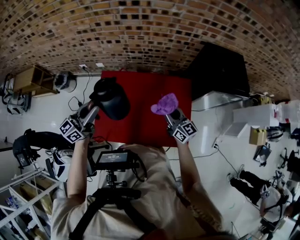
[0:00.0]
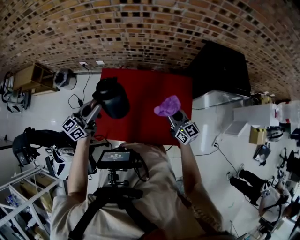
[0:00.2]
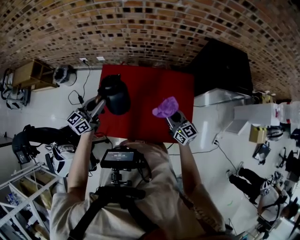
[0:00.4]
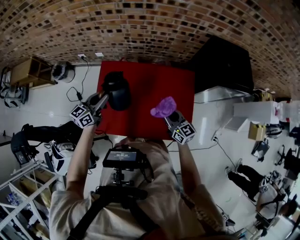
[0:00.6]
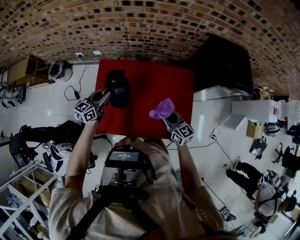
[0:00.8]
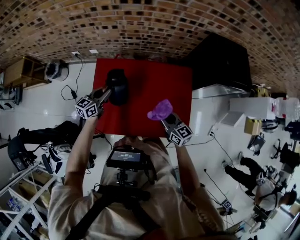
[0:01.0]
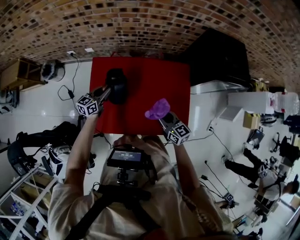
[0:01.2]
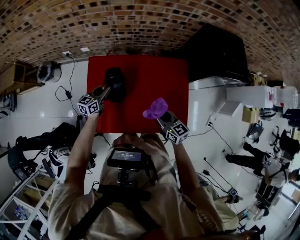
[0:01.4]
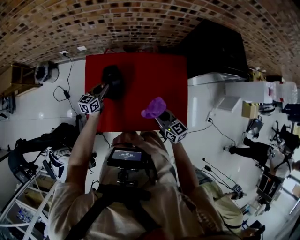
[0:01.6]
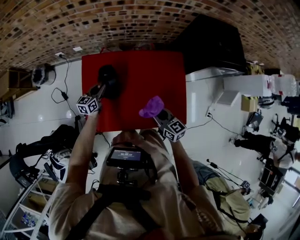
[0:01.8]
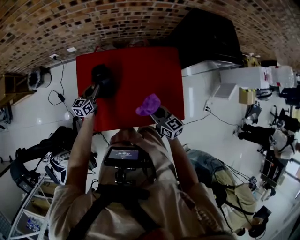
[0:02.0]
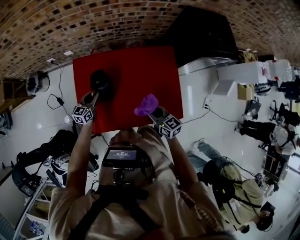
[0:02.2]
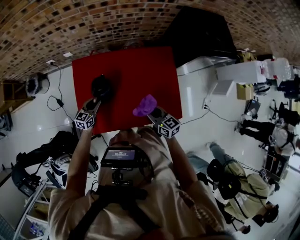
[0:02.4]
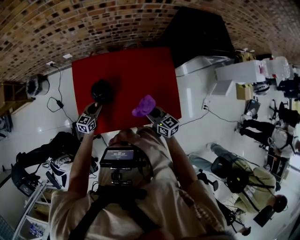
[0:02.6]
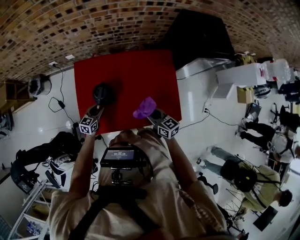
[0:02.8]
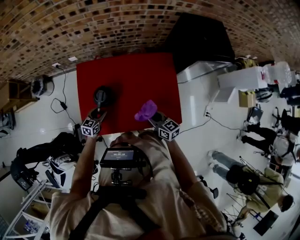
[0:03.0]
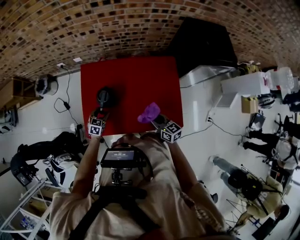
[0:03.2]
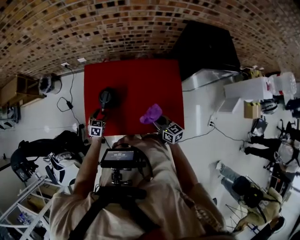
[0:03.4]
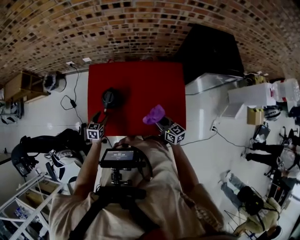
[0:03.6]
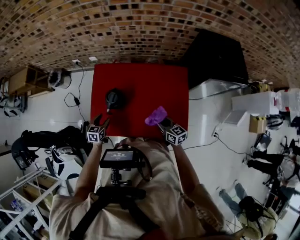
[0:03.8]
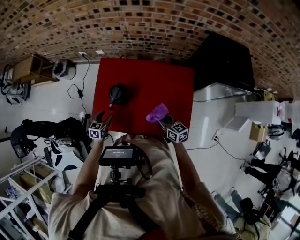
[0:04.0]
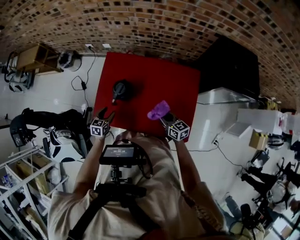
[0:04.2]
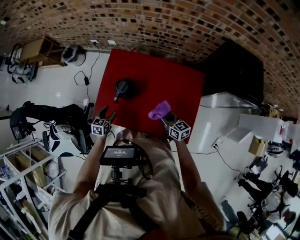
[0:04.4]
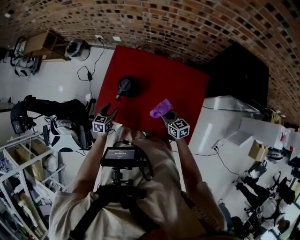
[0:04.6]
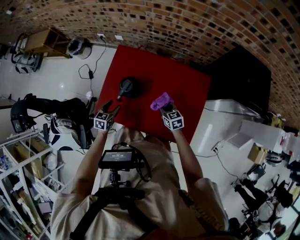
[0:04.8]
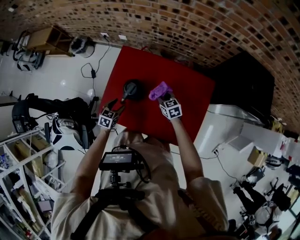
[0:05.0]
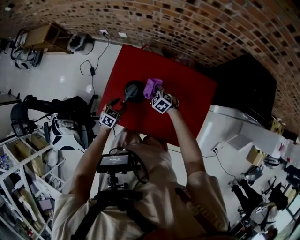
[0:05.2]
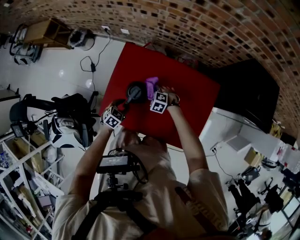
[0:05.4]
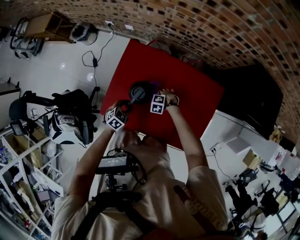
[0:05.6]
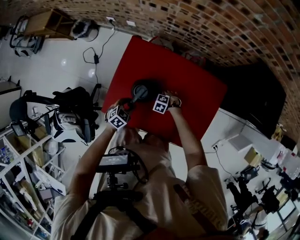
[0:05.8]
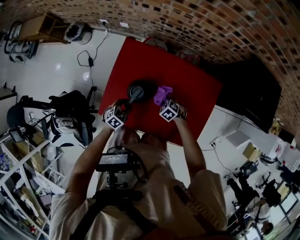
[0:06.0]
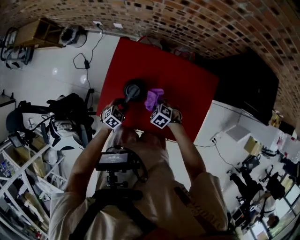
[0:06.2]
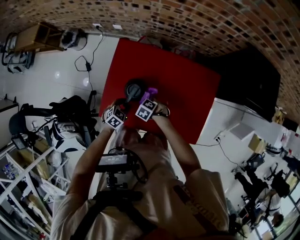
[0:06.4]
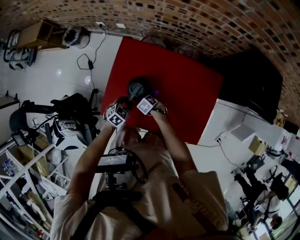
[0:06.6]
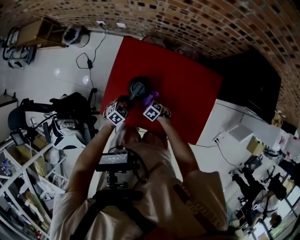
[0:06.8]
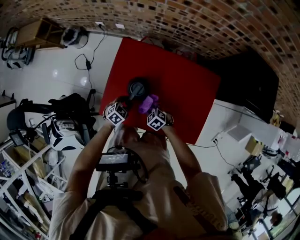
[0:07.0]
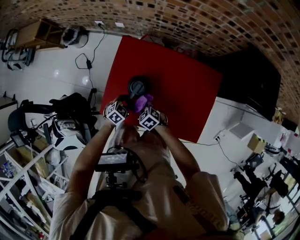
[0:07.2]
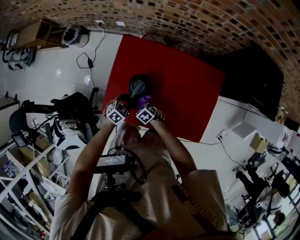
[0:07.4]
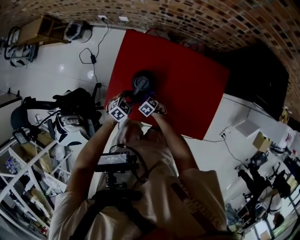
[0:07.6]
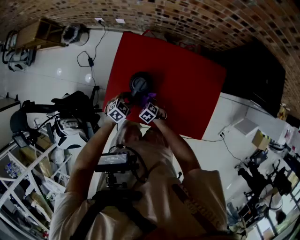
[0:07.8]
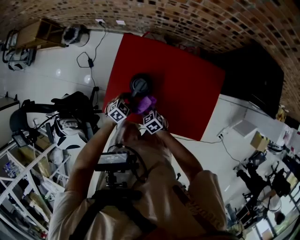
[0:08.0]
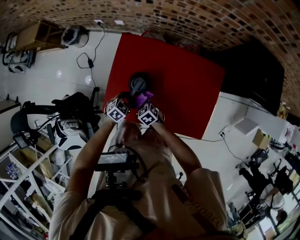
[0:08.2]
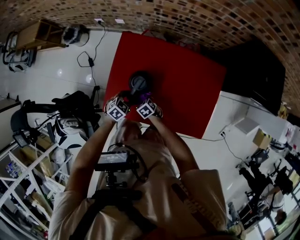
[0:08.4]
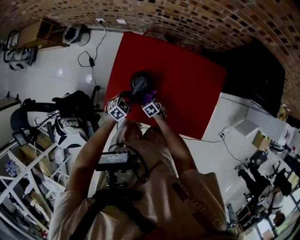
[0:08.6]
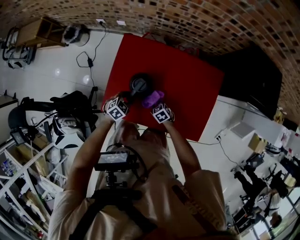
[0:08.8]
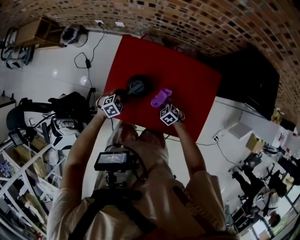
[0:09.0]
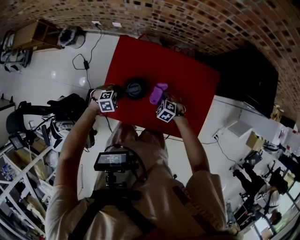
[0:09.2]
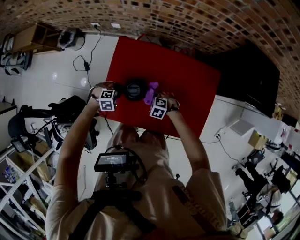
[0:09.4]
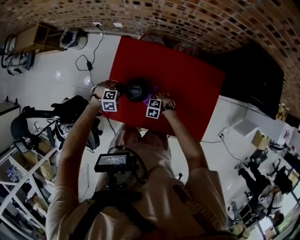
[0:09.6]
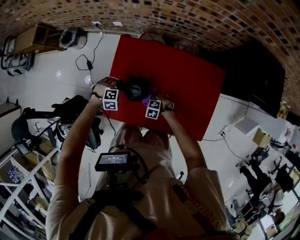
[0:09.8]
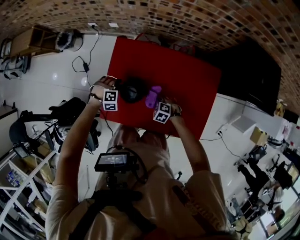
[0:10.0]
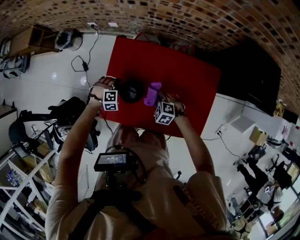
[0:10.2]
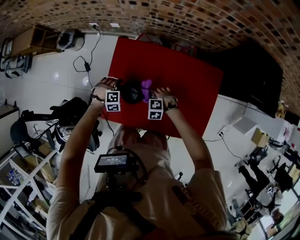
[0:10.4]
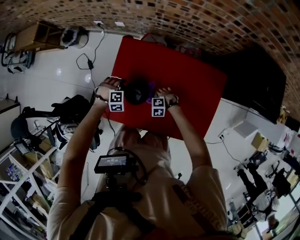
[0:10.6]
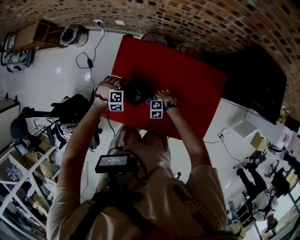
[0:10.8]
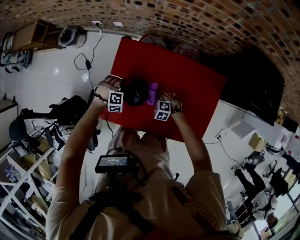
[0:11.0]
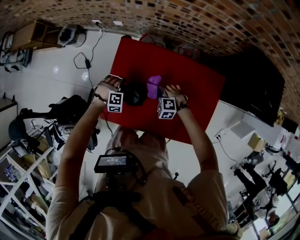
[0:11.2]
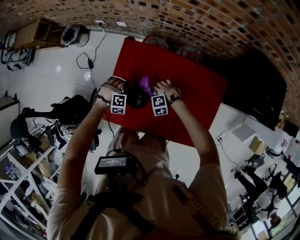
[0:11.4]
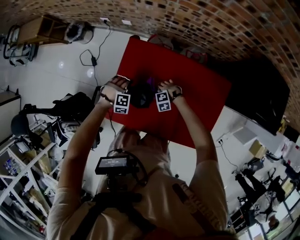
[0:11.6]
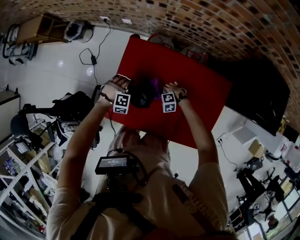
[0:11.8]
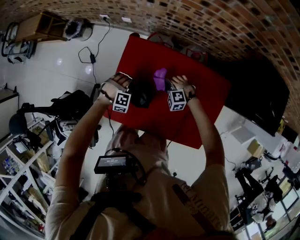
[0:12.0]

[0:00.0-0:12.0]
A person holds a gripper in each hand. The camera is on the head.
0:00.0 to 0:01.6: The left gripper moves downward, approximately 30 cm, and changes its angle by some 30 degrees; the right gripper heads downward and backward, covering roughly 10 cm.
0:01.6 to 0:03.0: The right gripper moves approximately 5 cm. The left gripper moves backward and downward, about 15 cm, and opens.
0:03.0 to 0:04.4: The right gripper shifts by approximately 5 cm. Meanwhile the left gripper is displaced backward and to the left by approximately 5 cm, and turns by approximately 30 degrees.
0:04.4 to 0:06.0: The left gripper ends up approximately 10 cm from where it was, turns by roughly 30 degrees, and closes its fingers; the right gripper heads downward, covering about 15 cm, and angles its fingers downward, by some 50 degrees.
0:06.0 to 0:07.6: The right gripper swings up and down, roughly 15 cm each way, with 3 reversals.
0:07.6 to 0:09.0: The right gripper moves up and down over about 15 cm, changing direction 2 times.
0:09.0 to 0:10.4: The left gripper shifts by roughly 10 cm, and rotates roughly 40 degrees, while the right gripper goes upward and returns, some 5 cm each way, and swivels some 40 degrees.
0:10.4 to 0:12.0: The right gripper moves up and down over about 10 cm, changing direction 3 times.

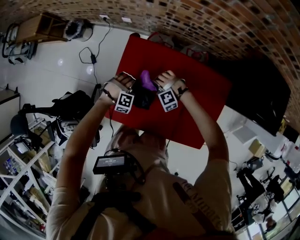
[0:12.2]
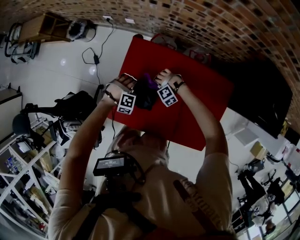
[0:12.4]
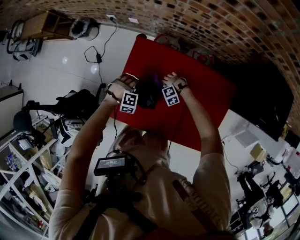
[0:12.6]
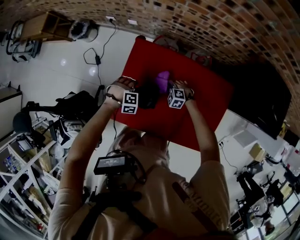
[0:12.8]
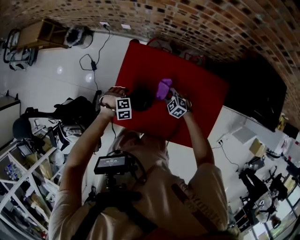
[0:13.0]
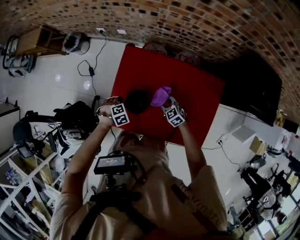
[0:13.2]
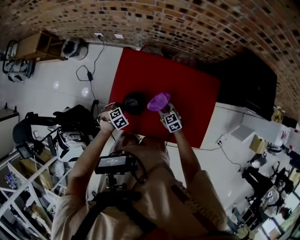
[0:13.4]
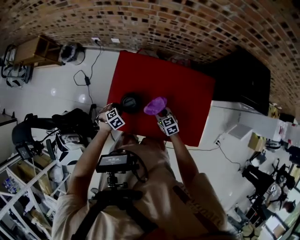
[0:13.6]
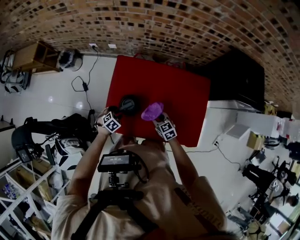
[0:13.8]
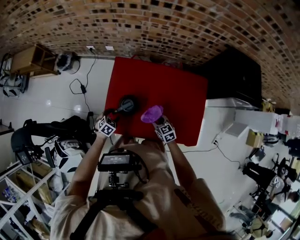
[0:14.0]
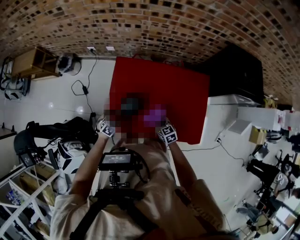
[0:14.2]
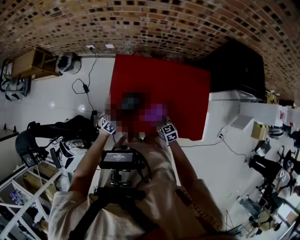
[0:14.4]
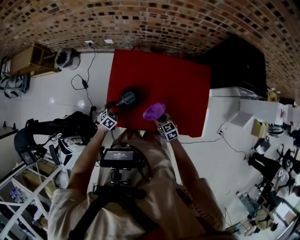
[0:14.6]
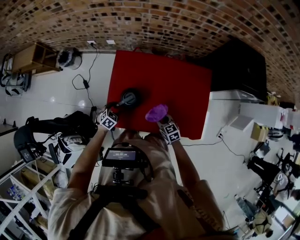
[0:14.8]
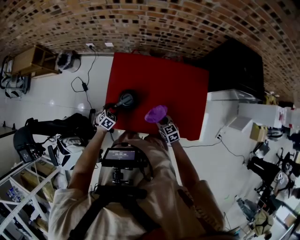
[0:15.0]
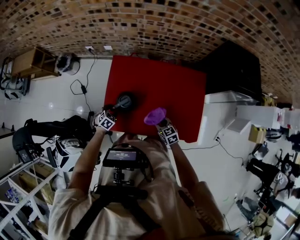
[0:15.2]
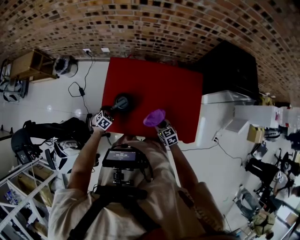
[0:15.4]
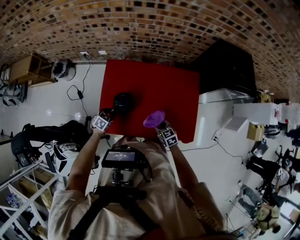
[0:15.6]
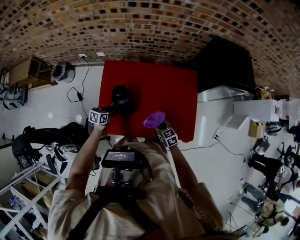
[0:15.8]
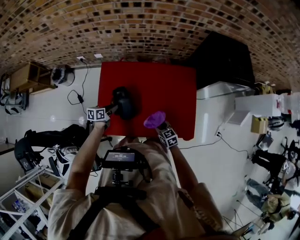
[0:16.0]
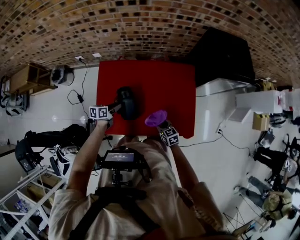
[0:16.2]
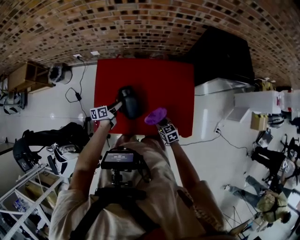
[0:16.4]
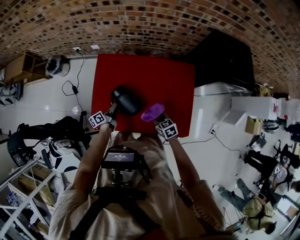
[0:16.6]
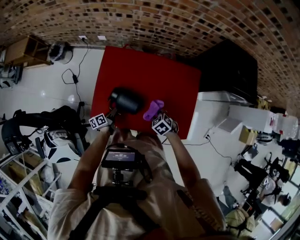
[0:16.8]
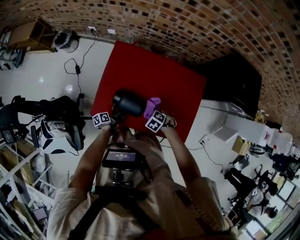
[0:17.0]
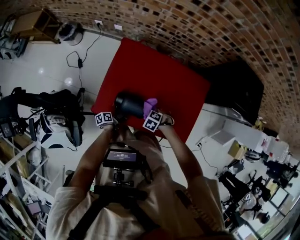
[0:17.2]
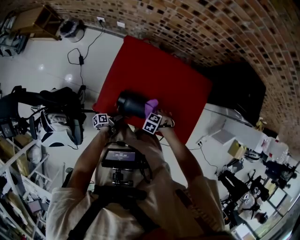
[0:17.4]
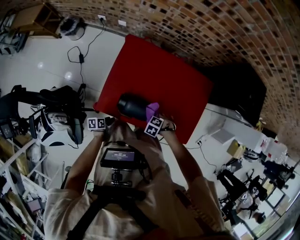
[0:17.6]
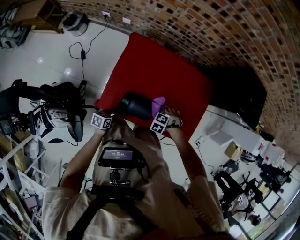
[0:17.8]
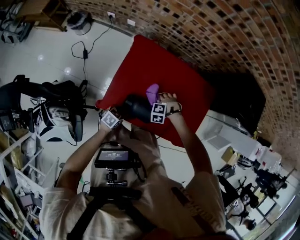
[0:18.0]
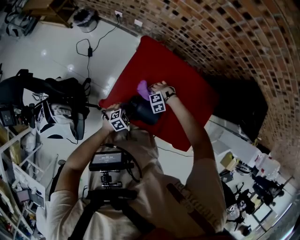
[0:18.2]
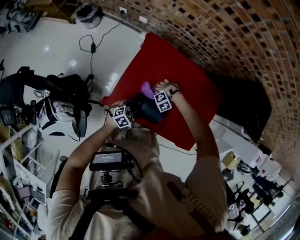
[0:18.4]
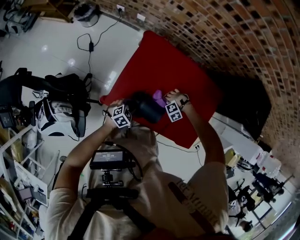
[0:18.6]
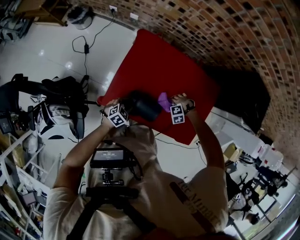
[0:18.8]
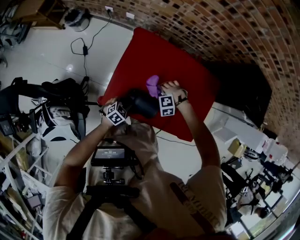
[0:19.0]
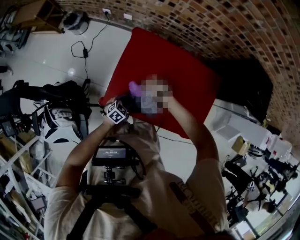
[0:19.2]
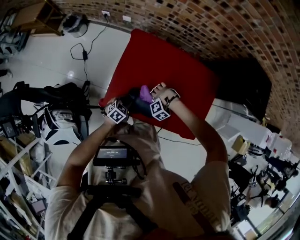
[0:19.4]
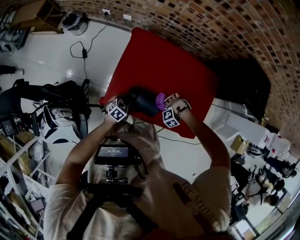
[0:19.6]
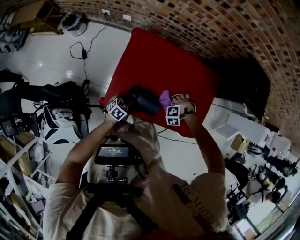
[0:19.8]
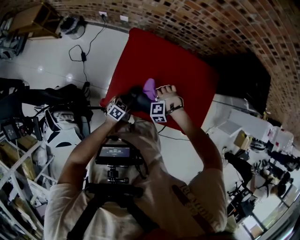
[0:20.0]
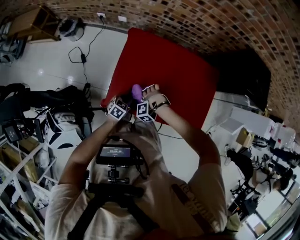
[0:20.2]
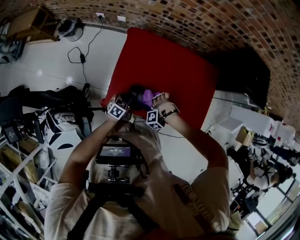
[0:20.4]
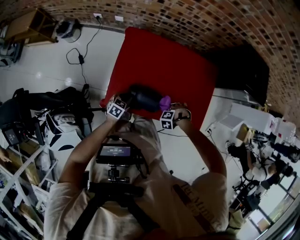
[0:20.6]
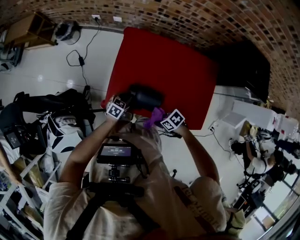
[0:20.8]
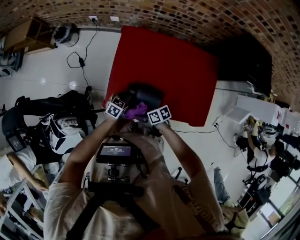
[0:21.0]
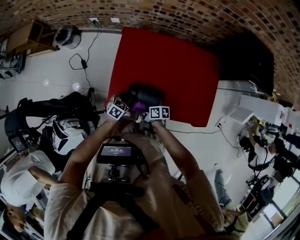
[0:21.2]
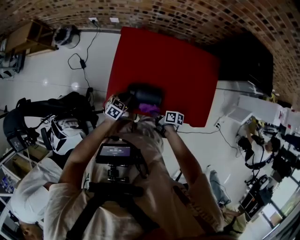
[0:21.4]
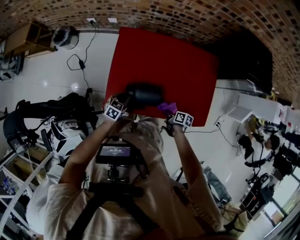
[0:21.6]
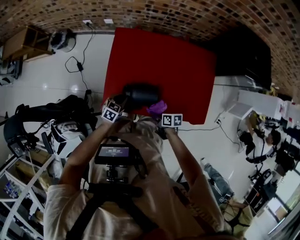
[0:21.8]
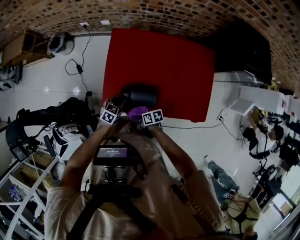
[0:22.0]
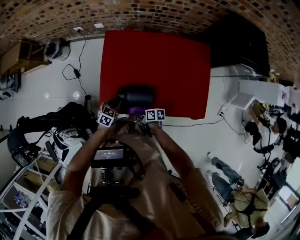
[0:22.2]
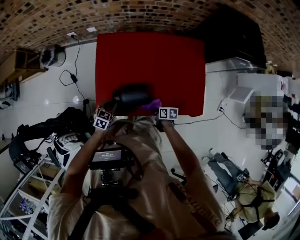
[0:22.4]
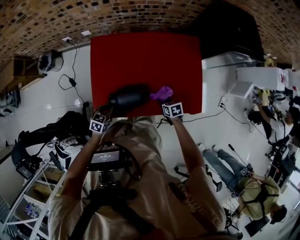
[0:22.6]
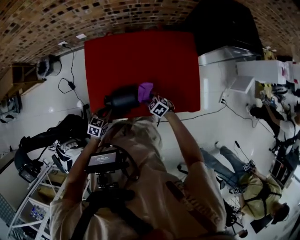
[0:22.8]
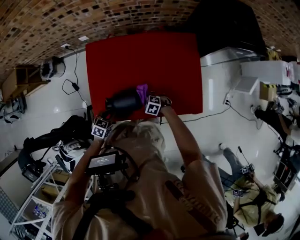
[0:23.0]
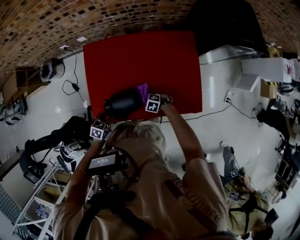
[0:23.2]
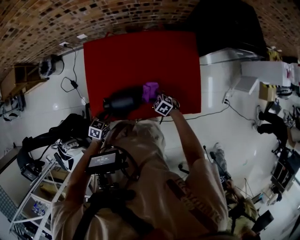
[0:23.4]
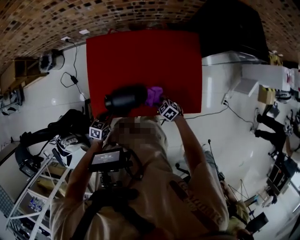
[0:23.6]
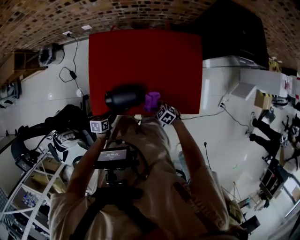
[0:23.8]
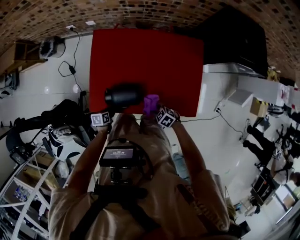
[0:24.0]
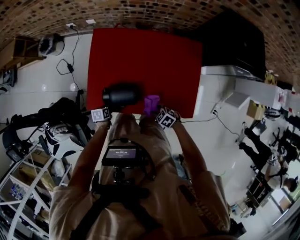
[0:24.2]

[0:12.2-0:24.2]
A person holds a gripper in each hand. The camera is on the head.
0:12.2 to 0:13.8: The left gripper moves some 15 cm, and rotates around the line of its fingers by some 60 degrees, counterclockwise from behind; the right gripper travels downward and back again, some 10 cm each way, and rotates around the line of its fingers by roughly 90 degrees, clockwise from behind.
0:13.8 to 0:15.2: The right gripper moves backward, approximately 5 cm.
0:15.2 to 0:16.6: Both grippers travel together to the right, roughly 10 cm. The left gripper rotates around the line of its fingers by about 80 degrees, counterclockwise from behind.
0:16.6 to 0:18.2: The left gripper goes downward and returns, some 10 cm each way, and rotates around the line of its fingers by roughly 80 degrees, clockwise from behind; the right gripper changes place by about 25 cm, and twists about 100 degrees counterclockwise, seen from behind.
0:18.2 to 0:19.8: The right gripper goes up and down, approximately 10 cm each way, reversing 2 times, and changes its angle by approximately 30 degrees.
0:19.8 to 0:21.2: The right gripper moves approximately 20 cm, and rotates around the line of its fingers by roughly 120 degrees, clockwise from behind.
0:21.2 to 0:22.6: The right gripper moves some 25 cm, and changes its angle by some 40 degrees.
0:22.6 to 0:24.2: The right gripper moves some 5 cm downward and comes back, and rotates around the line of its fingers by approximately 50 degrees, counterclockwise from behind. The left gripper travels downward by approximately 10 cm, rotates around the line of its fingers by about 40 degrees, counterclockwise from behind, and opens.
